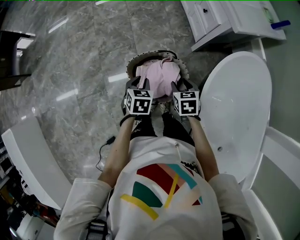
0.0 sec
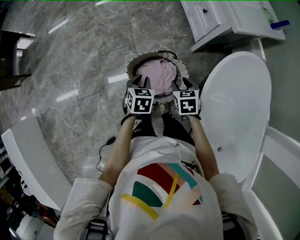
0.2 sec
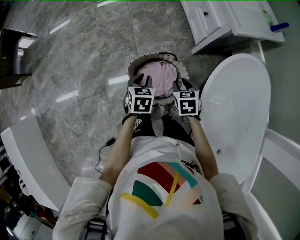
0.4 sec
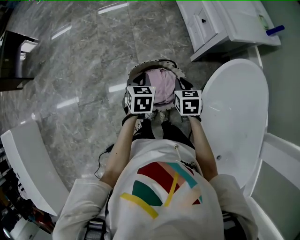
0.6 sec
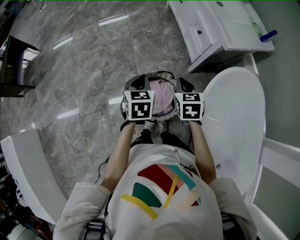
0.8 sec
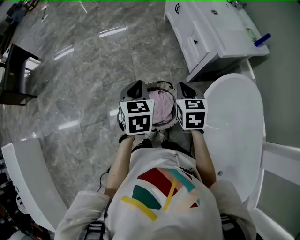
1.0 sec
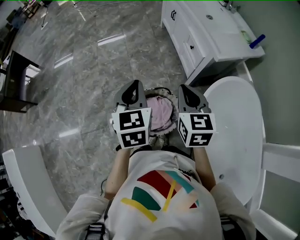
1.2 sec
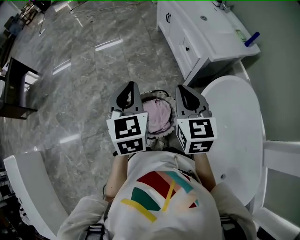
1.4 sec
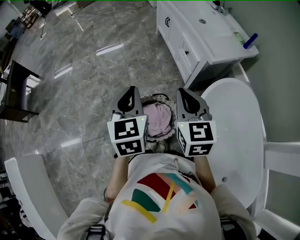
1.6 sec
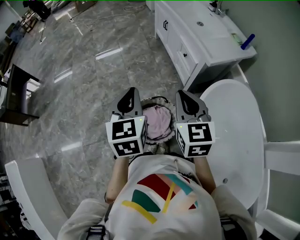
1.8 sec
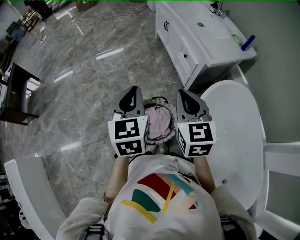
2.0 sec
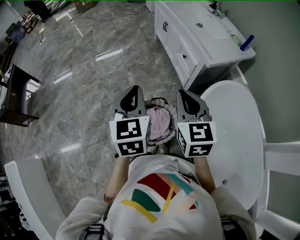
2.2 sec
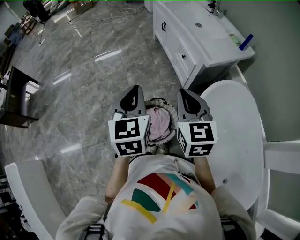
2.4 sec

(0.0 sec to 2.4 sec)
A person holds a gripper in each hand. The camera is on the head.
0.0 sec - 1.2 sec: The two grippers go approximately 30 cm upward. The left gripper points its fingers roughly 30 degrees further upward; the right gripper tips its fingers upward by some 30 degrees, and closes up.
1.2 sec - 2.4 sec: The left gripper ends up approximately 5 cm from where it was; the right gripper shifts roughly 5 cm upward.

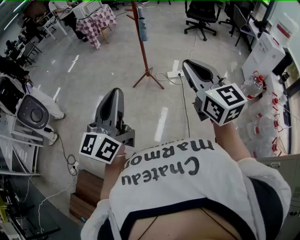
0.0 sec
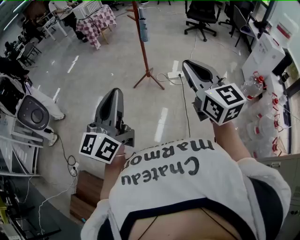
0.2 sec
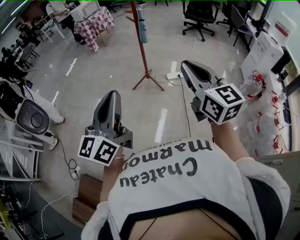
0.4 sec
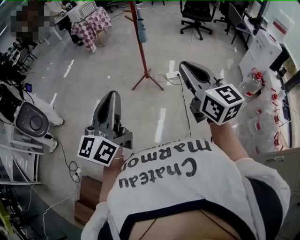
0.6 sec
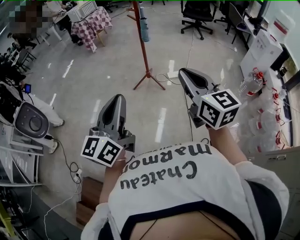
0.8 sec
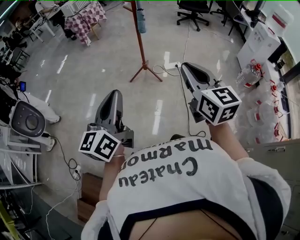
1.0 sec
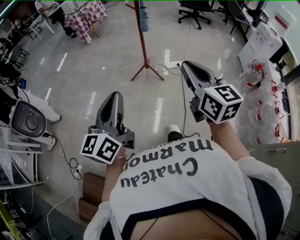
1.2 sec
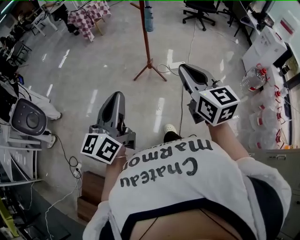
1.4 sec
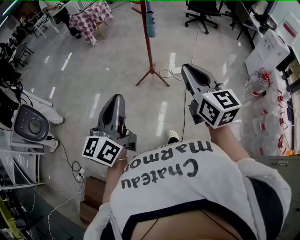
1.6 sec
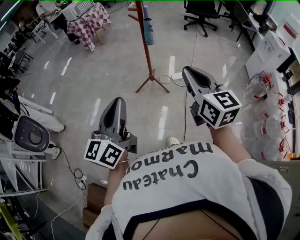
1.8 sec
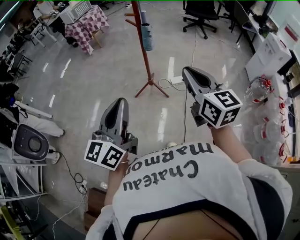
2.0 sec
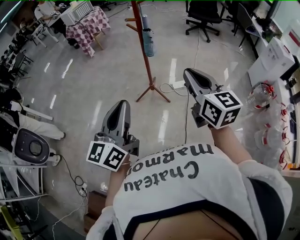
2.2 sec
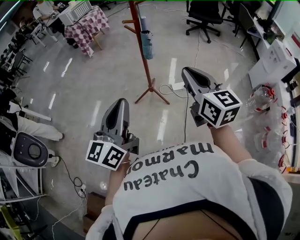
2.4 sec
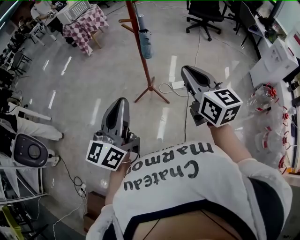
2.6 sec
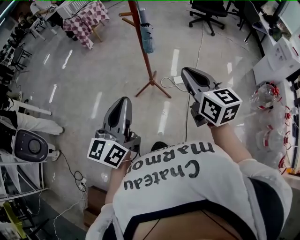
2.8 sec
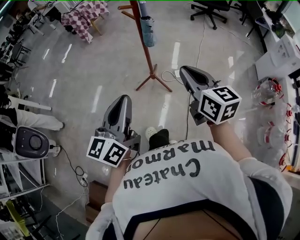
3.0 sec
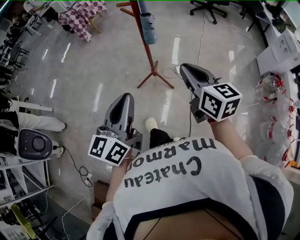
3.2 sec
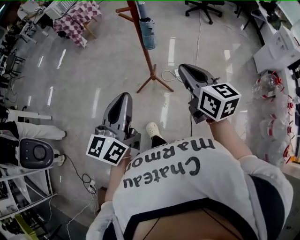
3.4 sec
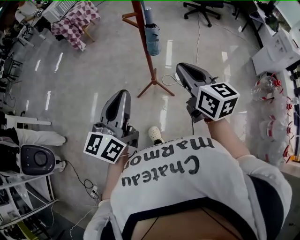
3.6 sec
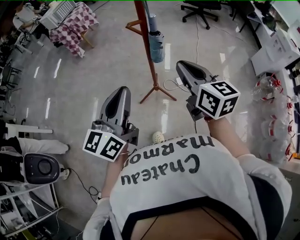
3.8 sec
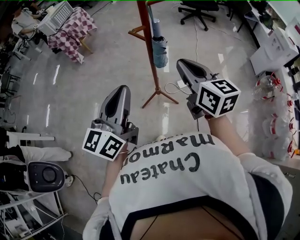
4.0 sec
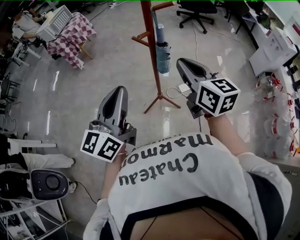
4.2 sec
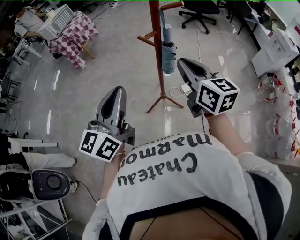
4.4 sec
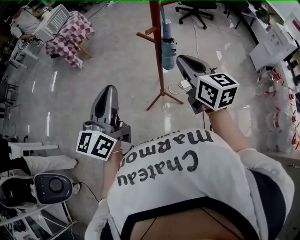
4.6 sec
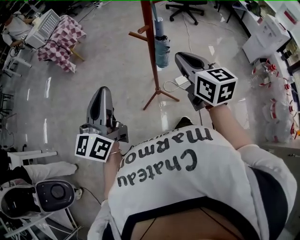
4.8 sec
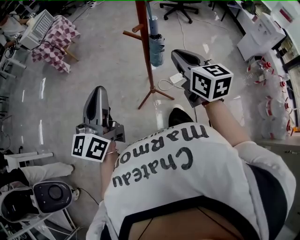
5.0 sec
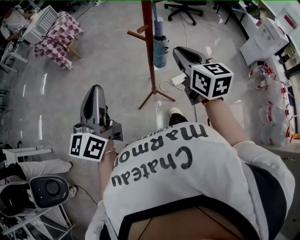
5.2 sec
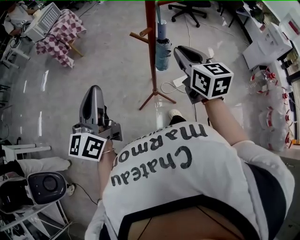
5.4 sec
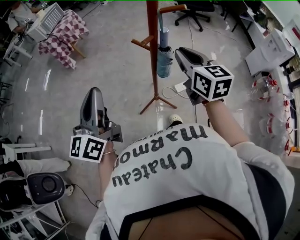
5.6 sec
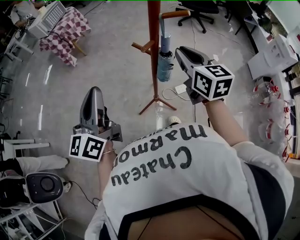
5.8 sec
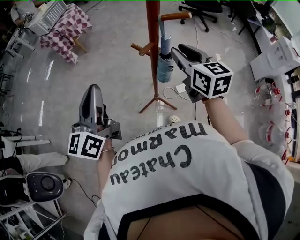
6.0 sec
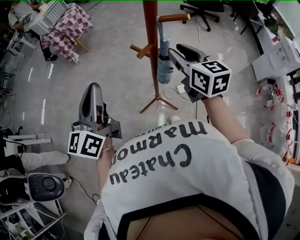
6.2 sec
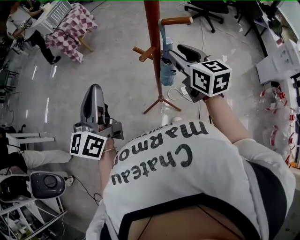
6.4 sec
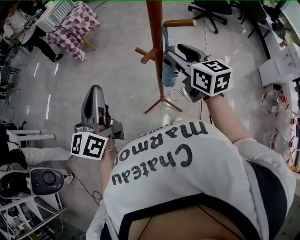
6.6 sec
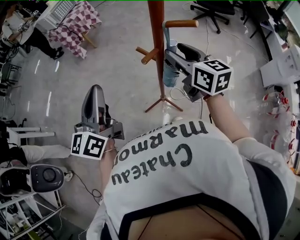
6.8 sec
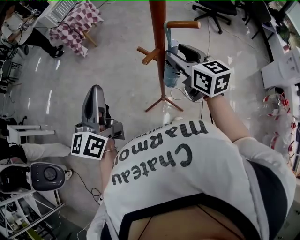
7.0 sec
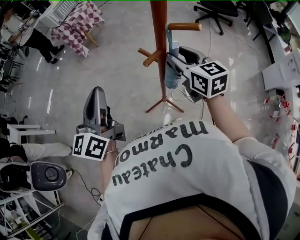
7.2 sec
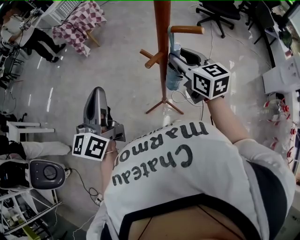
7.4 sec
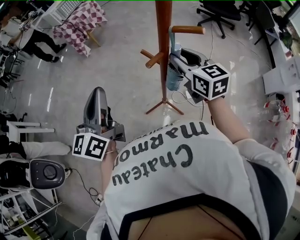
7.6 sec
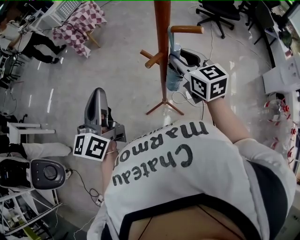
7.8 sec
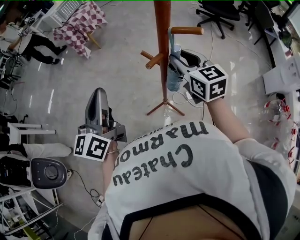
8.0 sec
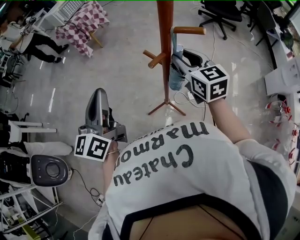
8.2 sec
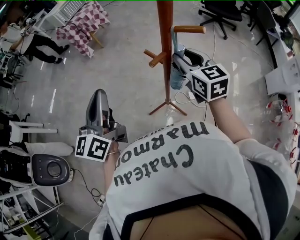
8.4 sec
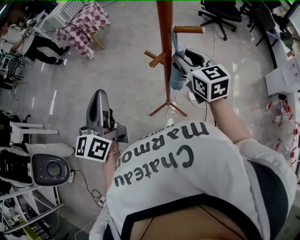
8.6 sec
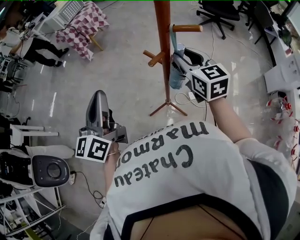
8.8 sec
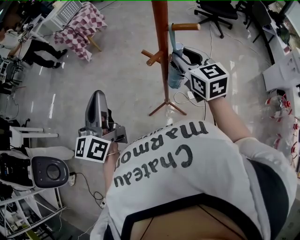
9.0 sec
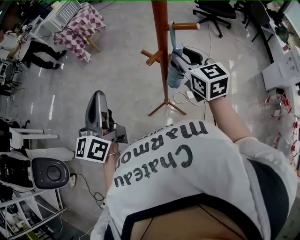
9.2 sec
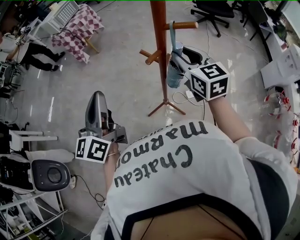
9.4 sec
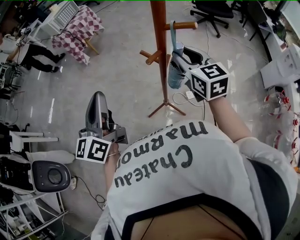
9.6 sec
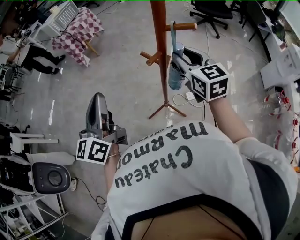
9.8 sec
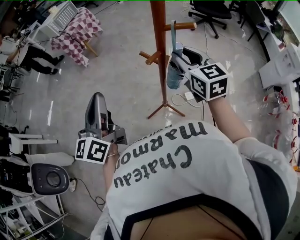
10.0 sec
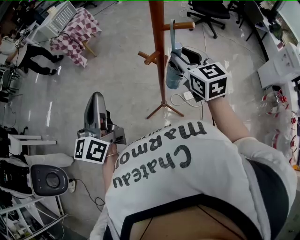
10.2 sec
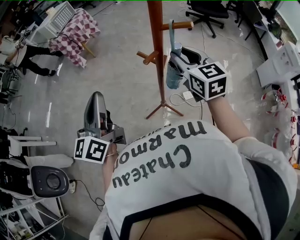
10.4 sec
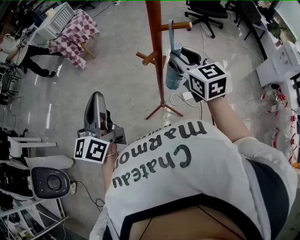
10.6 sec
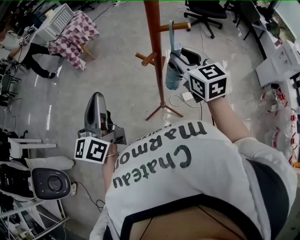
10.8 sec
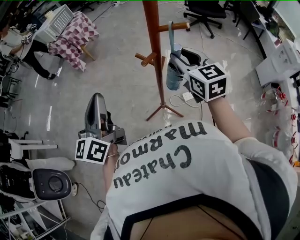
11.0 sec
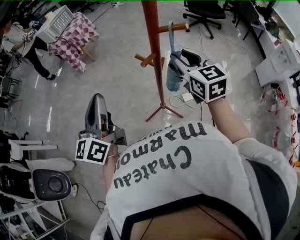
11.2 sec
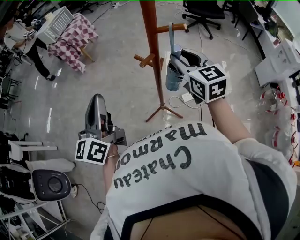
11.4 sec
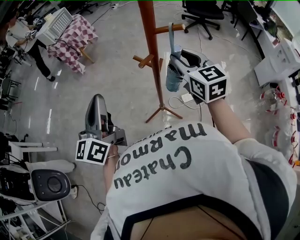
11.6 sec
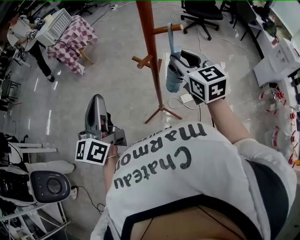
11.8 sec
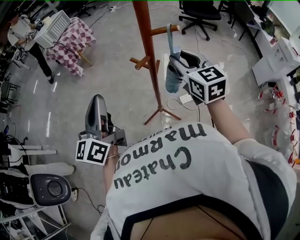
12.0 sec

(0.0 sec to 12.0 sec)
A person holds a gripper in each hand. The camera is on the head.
0.0 sec - 1.6 sec: Both grippers travel together forward, to the left and downward, about 15 cm.
1.6 sec - 3.0 sec: Both grippers move forward, roughly 20 cm.
3.0 sec - 4.4 sec: The two grippers go approximately 25 cm forward and to the left.
4.4 sec - 6.0 sec: Both grippers travel together forward, about 10 cm.
6.0 sec - 7.6 sec: The right gripper travels forward by some 5 cm.
7.6 sec - 10.4 sec: The grippers make only small movements.
10.4 sec - 12.0 sec: There are only small adjustments of the grippers.

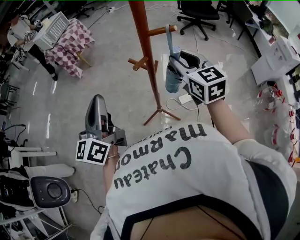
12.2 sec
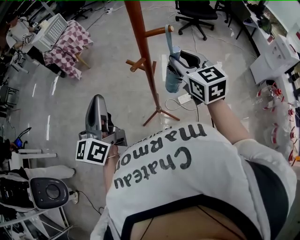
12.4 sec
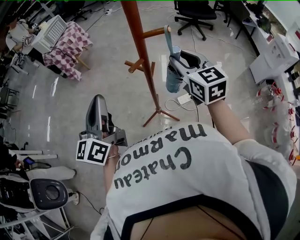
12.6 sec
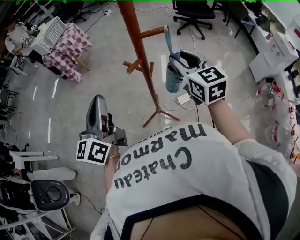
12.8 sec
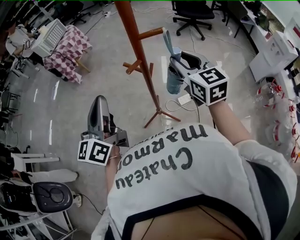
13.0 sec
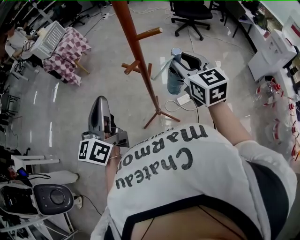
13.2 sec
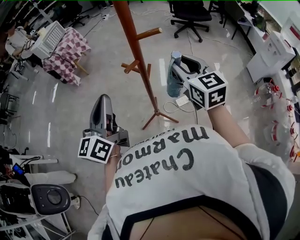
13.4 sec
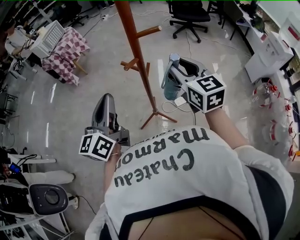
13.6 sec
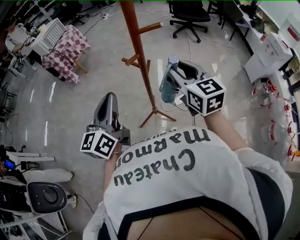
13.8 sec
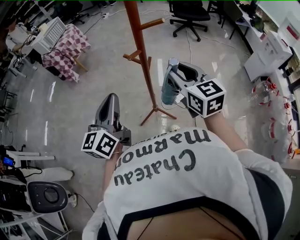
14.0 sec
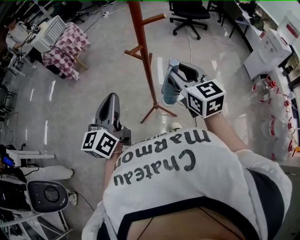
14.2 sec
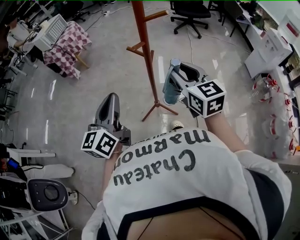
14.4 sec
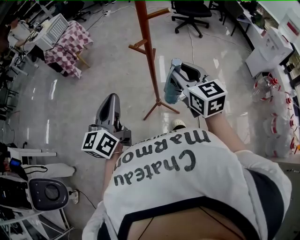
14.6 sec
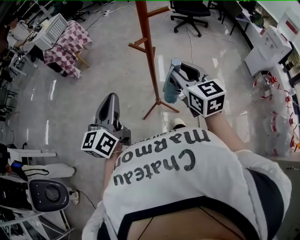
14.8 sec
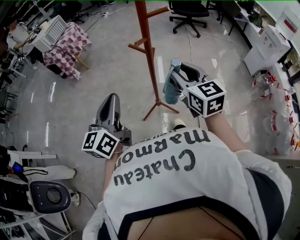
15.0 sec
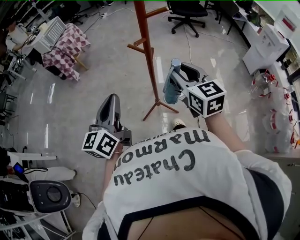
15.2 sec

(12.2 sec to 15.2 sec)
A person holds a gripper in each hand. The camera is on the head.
12.2 sec - 13.8 sec: The right gripper shifts about 5 cm backward, while the left gripper is displaced to the right by some 5 cm.
13.8 sec - 15.2 sec: Both grippers travel together backward, approximately 5 cm.

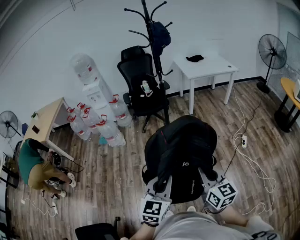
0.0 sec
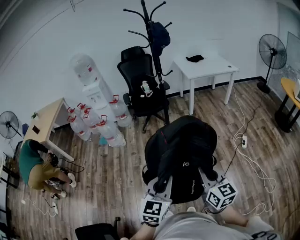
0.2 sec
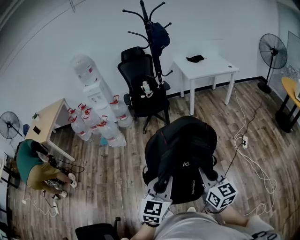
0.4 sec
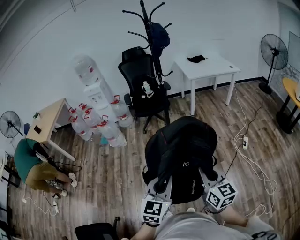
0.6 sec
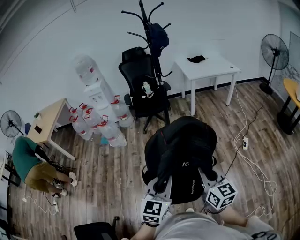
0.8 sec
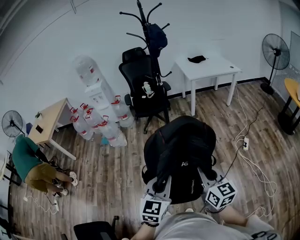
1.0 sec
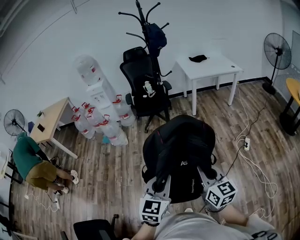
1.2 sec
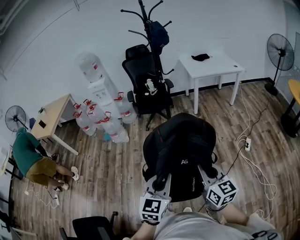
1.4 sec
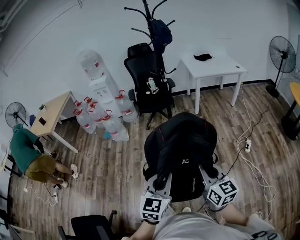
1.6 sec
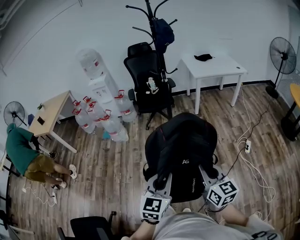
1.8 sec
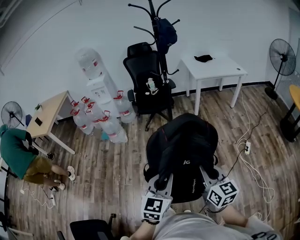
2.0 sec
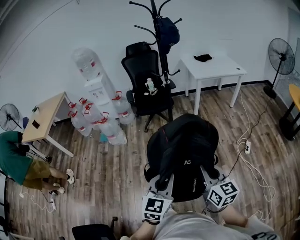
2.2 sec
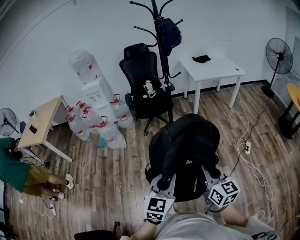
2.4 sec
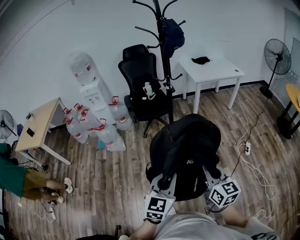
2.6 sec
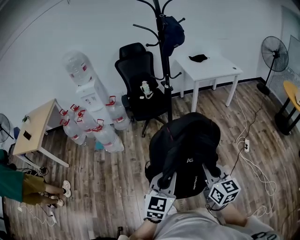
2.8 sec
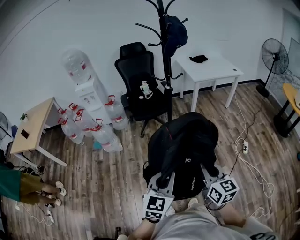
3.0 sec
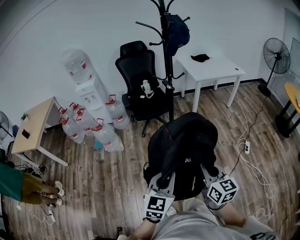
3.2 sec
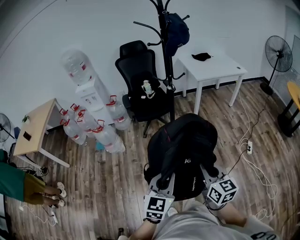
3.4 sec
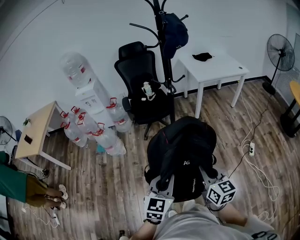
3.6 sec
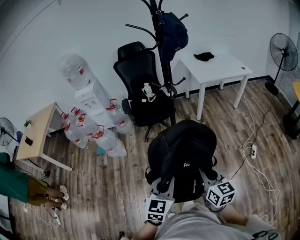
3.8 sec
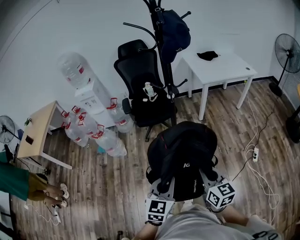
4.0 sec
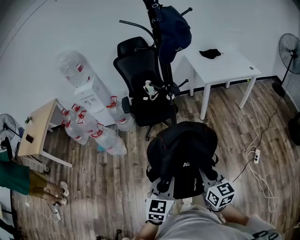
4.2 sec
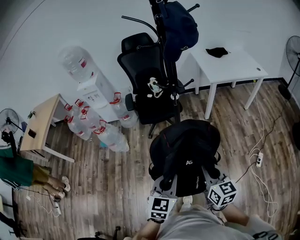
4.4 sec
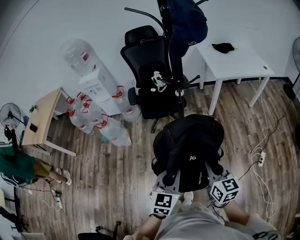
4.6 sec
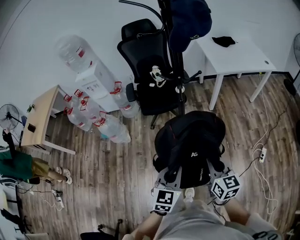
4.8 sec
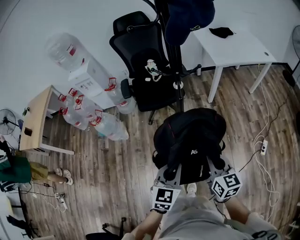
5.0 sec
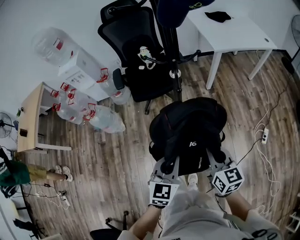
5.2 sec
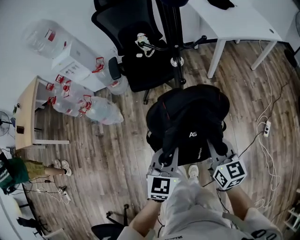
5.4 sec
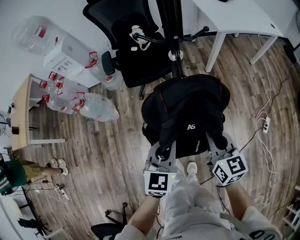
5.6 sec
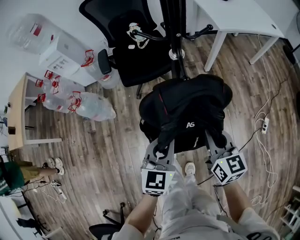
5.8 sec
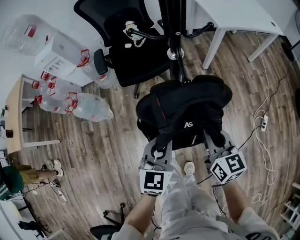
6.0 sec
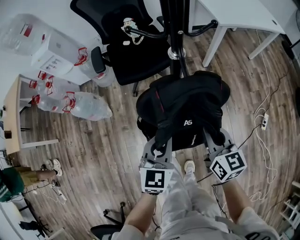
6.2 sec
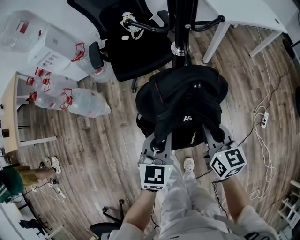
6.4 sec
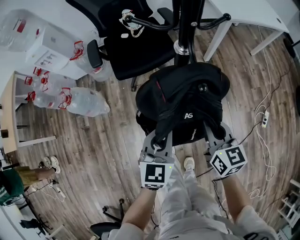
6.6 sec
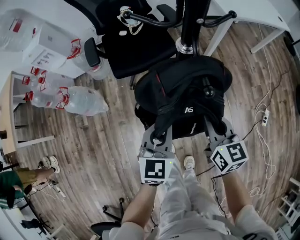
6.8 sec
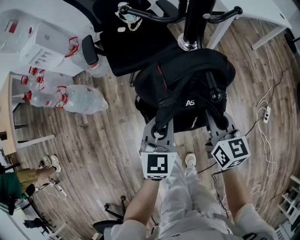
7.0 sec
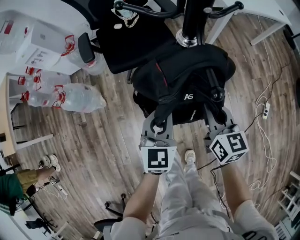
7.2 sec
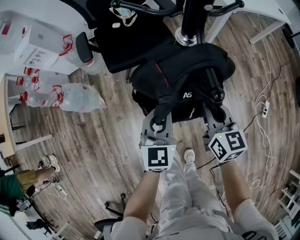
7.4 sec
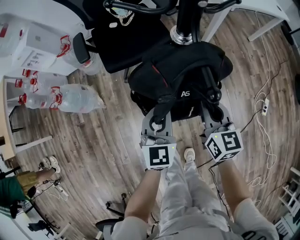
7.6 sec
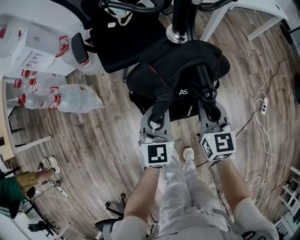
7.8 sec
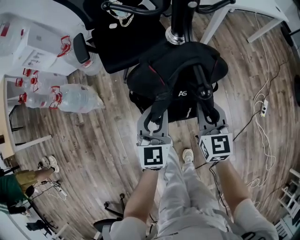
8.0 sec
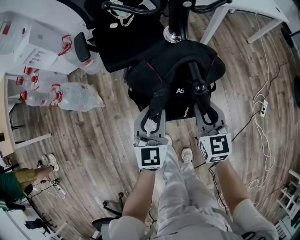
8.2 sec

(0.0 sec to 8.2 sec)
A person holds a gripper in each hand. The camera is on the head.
0.0 sec - 1.6 sec: The two grippers go some 5 cm to the right.
1.6 sec - 3.2 sec: The two grippers go about 25 cm forward and to the left.
3.2 sec - 5.0 sec: Both grippers move forward, about 30 cm.
5.0 sec - 6.6 sec: Both grippers move forward and downward, approximately 25 cm.
6.6 sec - 8.2 sec: The left gripper ends up some 5 cm from where it was, and opens up. Meanwhile the right gripper is displaced downward by some 5 cm.
